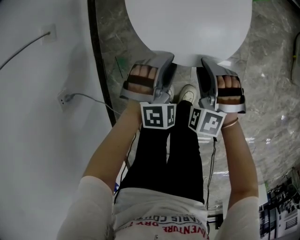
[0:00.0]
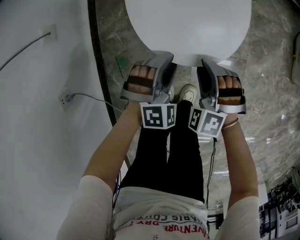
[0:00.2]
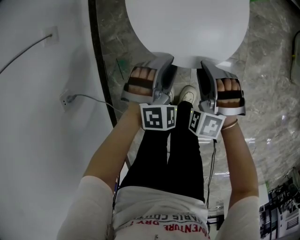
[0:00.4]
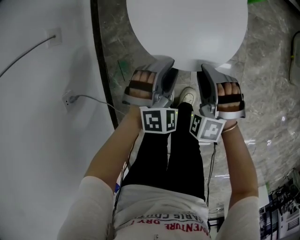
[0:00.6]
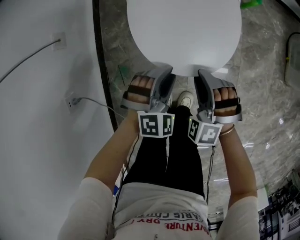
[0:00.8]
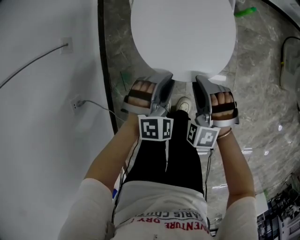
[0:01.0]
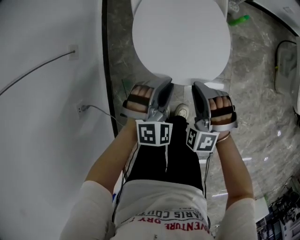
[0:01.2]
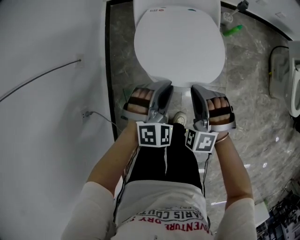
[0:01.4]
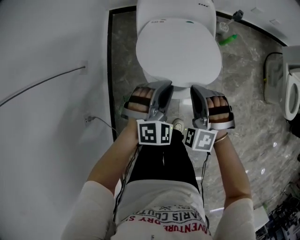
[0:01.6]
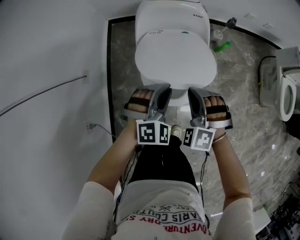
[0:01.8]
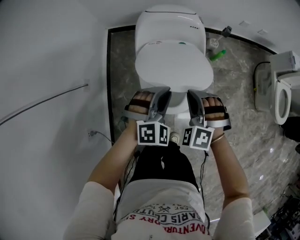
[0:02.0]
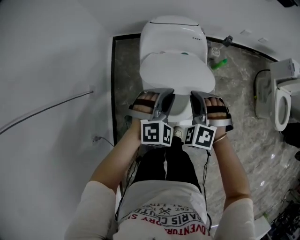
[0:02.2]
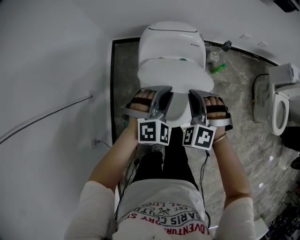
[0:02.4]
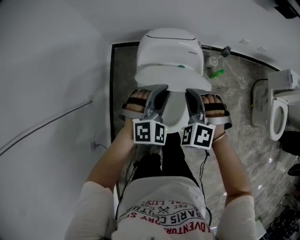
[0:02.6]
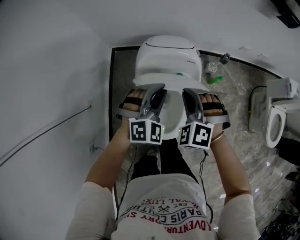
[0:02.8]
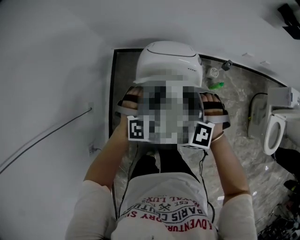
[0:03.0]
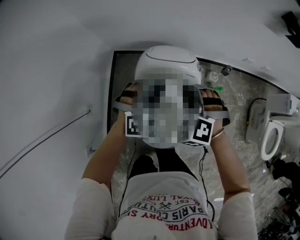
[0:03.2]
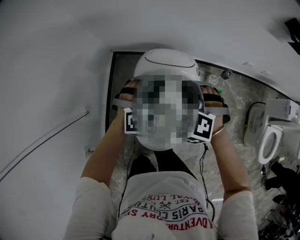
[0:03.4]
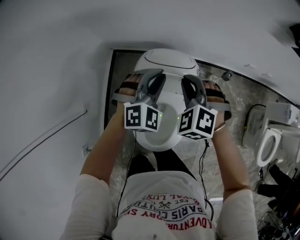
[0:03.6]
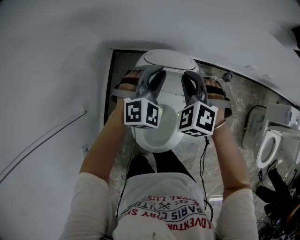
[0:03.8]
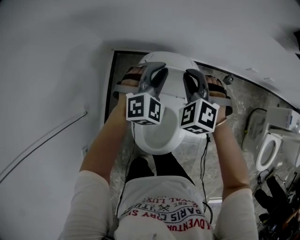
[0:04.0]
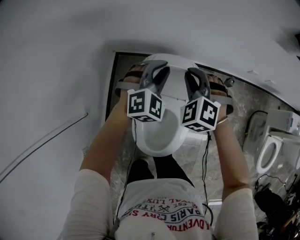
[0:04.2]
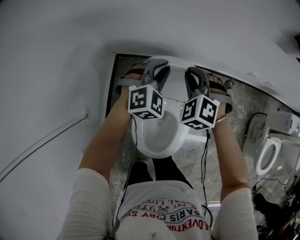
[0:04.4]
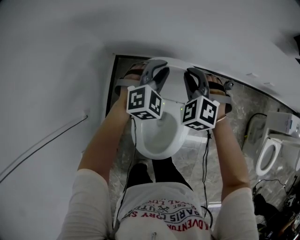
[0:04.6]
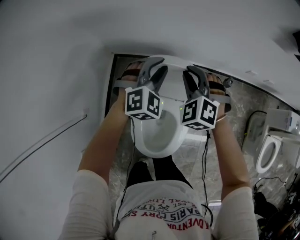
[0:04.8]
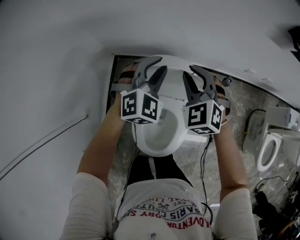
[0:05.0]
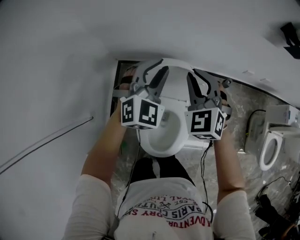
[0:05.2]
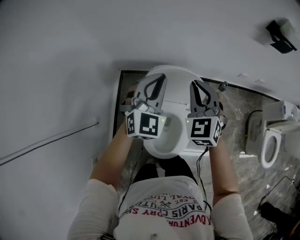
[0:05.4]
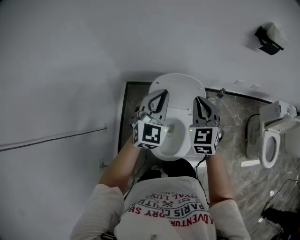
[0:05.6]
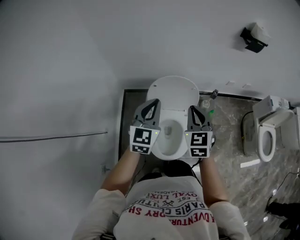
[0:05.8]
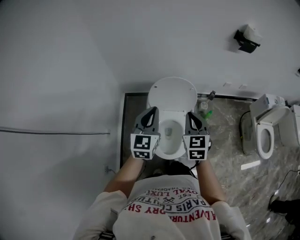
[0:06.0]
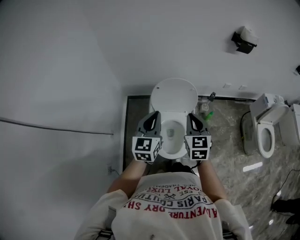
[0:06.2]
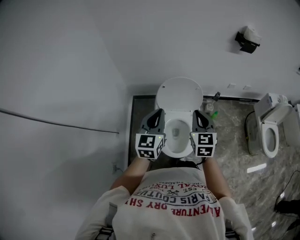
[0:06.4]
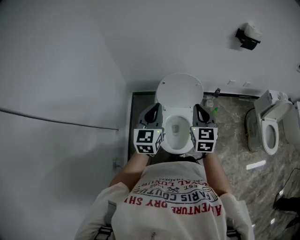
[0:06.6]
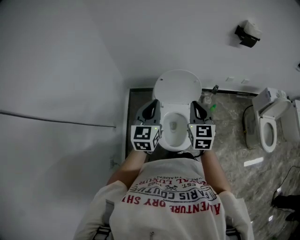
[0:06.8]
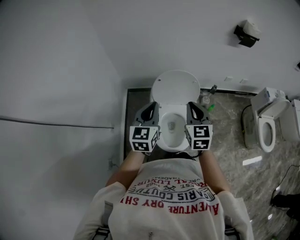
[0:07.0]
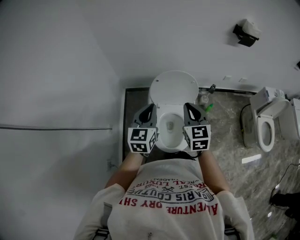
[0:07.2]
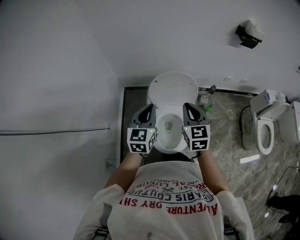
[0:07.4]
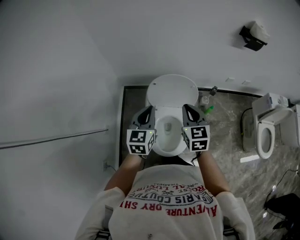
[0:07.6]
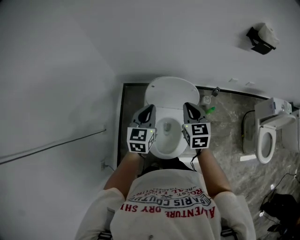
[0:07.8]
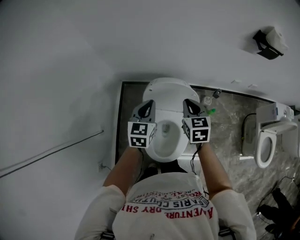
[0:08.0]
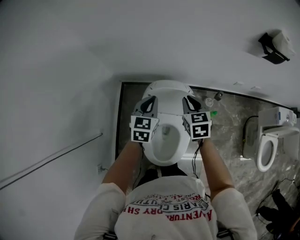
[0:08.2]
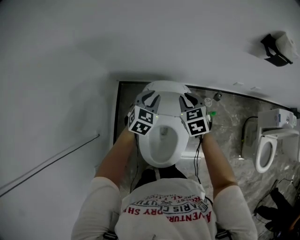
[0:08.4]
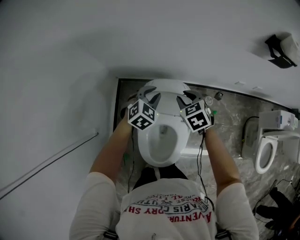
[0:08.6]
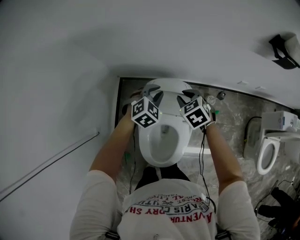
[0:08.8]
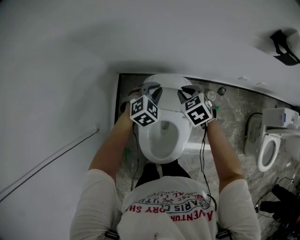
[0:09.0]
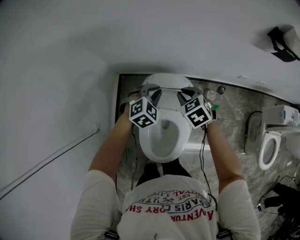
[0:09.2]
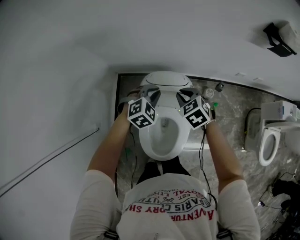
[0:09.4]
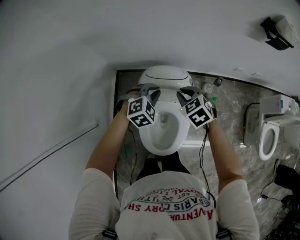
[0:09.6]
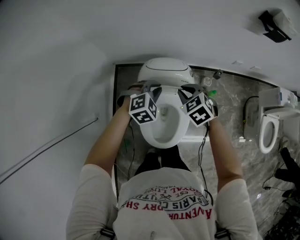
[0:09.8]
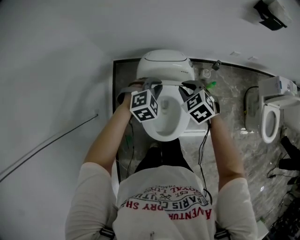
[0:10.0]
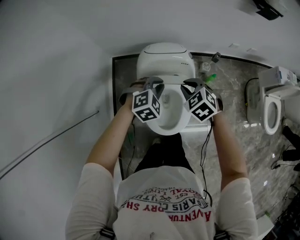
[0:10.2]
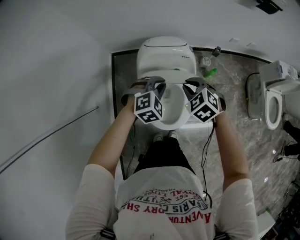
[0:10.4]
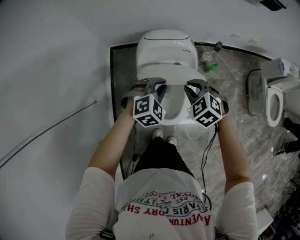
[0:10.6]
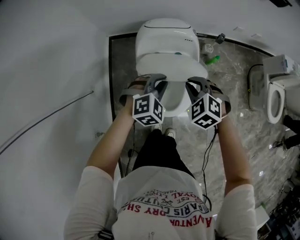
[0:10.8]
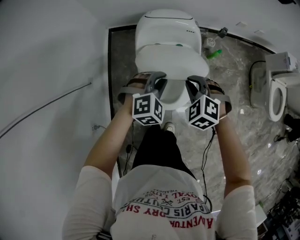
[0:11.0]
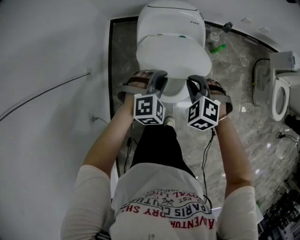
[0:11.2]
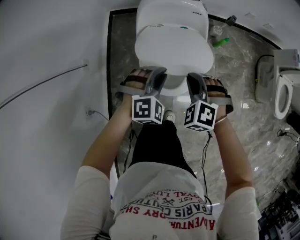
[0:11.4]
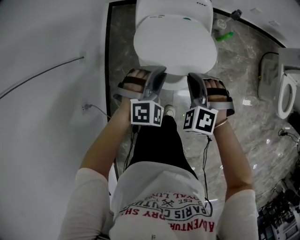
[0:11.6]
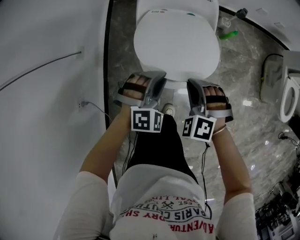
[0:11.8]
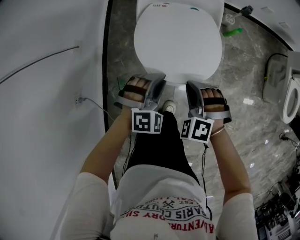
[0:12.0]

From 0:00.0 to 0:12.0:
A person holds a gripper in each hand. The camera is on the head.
From 0:00.0 to 0:01.6: The two grippers go some 25 cm upward. The right gripper closes. The left gripper closes.
From 0:01.6 to 0:03.0: The two grippers go about 30 cm forward and upward.
From 0:03.0 to 0:04.4: Both grippers move forward, approximately 20 cm.
From 0:04.4 to 0:06.0: The grippers both shift backward and upward by about 40 cm. The right gripper twists about 50 degrees clockwise, seen from behind. Meanwhile the left gripper rotates around the line of its fingers by approximately 50 degrees, counterclockwise from behind.
From 0:06.0 to 0:07.6: The left gripper moves about 5 cm. Meanwhile the right gripper heads forward, covering about 5 cm.
From 0:07.6 to 0:09.0: Both grippers move forward and downward, approximately 30 cm. The right gripper rotates some 40 degrees, while the left gripper rotates around the line of its fingers by approximately 40 degrees, clockwise from behind.
From 0:09.0 to 0:10.4: Both grippers travel together backward, approximately 25 cm.
From 0:10.4 to 0:12.0: Both grippers move backward and downward, roughly 30 cm. The right gripper rotates some 30 degrees.

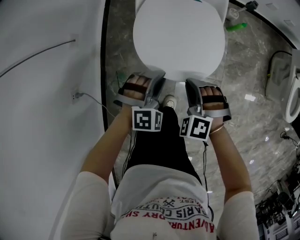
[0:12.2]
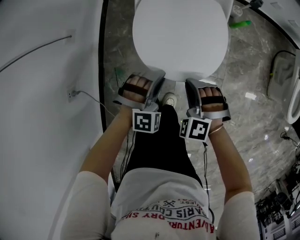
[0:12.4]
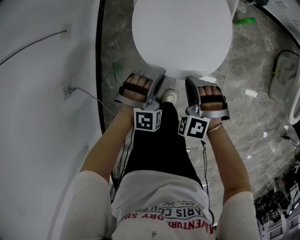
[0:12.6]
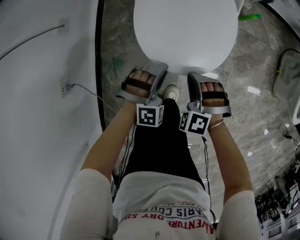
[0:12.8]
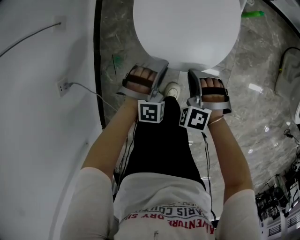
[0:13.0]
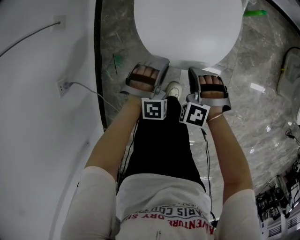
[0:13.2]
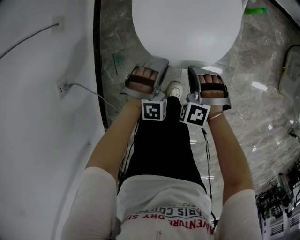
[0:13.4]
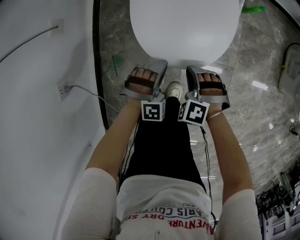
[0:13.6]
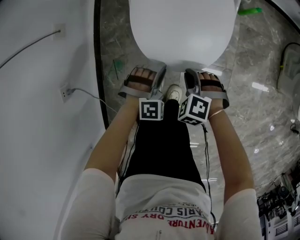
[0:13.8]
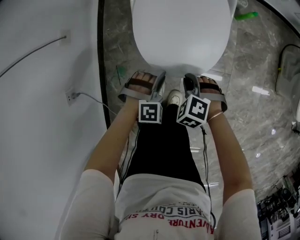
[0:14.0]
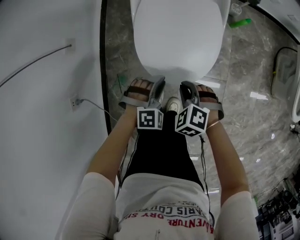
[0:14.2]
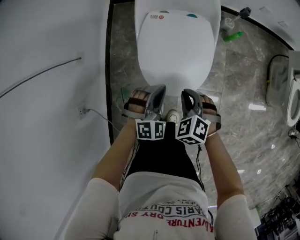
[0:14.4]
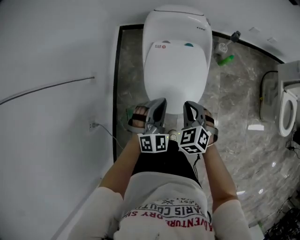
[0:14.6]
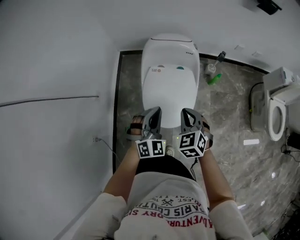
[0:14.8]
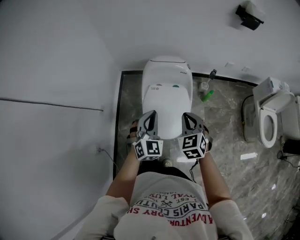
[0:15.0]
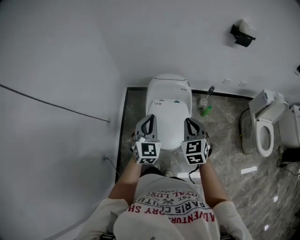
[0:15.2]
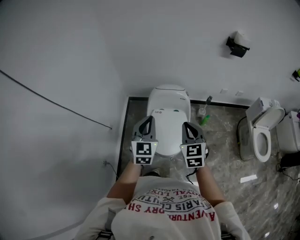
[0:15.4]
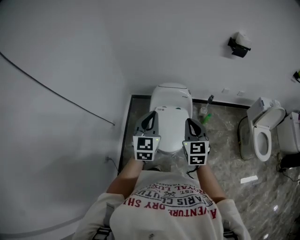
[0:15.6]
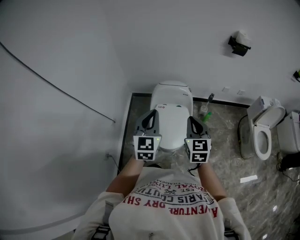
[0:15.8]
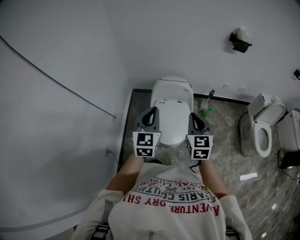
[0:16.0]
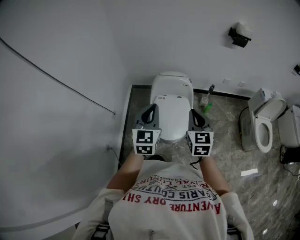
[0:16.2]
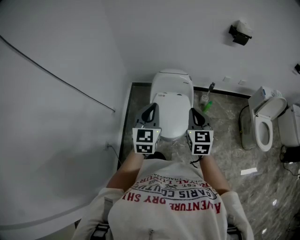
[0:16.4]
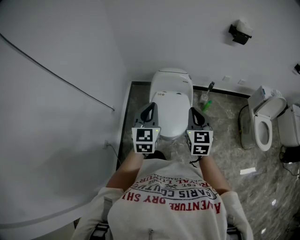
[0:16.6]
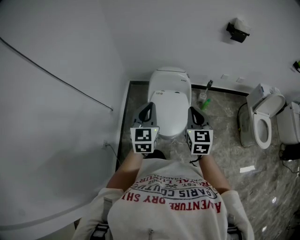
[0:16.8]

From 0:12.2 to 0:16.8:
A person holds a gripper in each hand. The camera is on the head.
From 0:12.2 to 0:13.8: The two grippers go approximately 15 cm downward.
From 0:13.8 to 0:15.2: Both grippers travel together upward, roughly 60 cm. The left gripper tilts its fingers about 40 degrees upward. The right gripper tips its fingers upward by some 40 degrees.
From 0:15.2 to 0:16.8: Both grippers move backward and upward, roughly 10 cm.

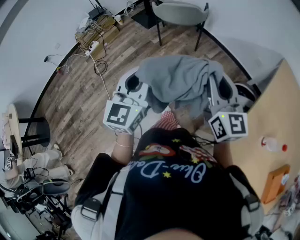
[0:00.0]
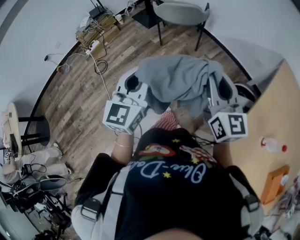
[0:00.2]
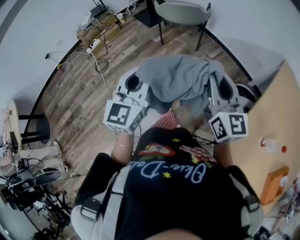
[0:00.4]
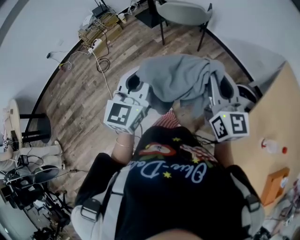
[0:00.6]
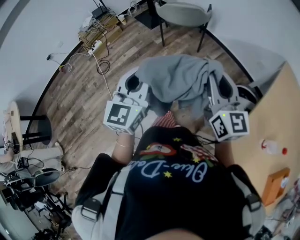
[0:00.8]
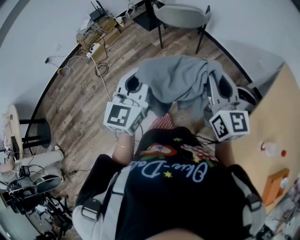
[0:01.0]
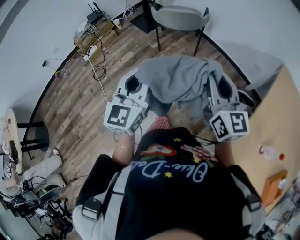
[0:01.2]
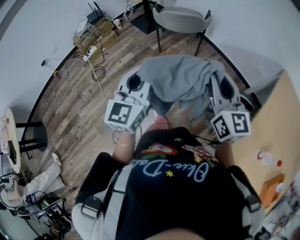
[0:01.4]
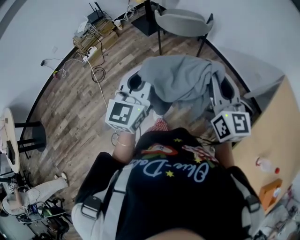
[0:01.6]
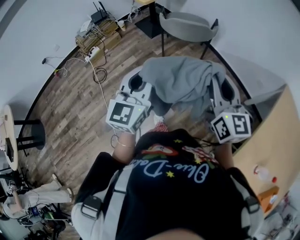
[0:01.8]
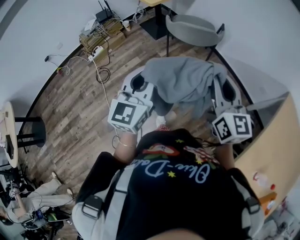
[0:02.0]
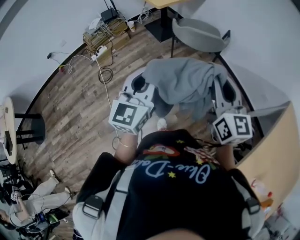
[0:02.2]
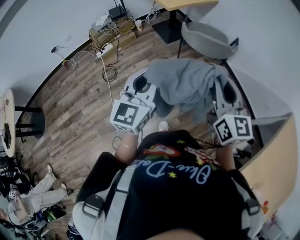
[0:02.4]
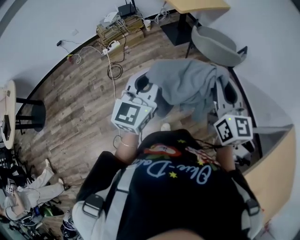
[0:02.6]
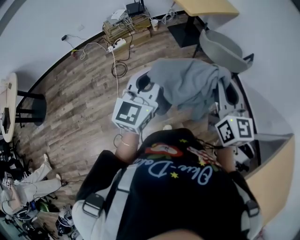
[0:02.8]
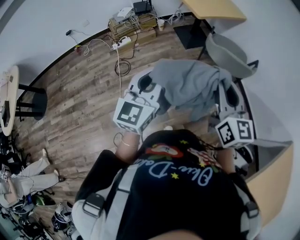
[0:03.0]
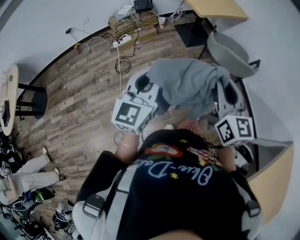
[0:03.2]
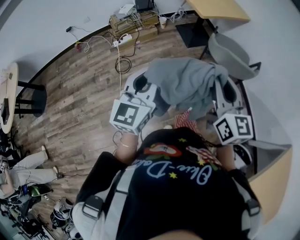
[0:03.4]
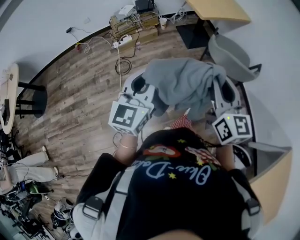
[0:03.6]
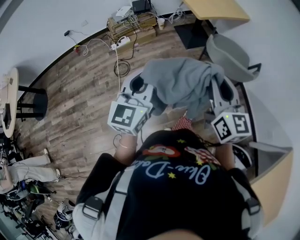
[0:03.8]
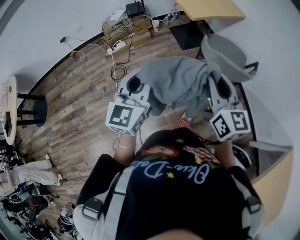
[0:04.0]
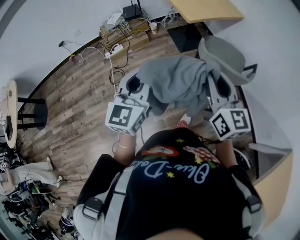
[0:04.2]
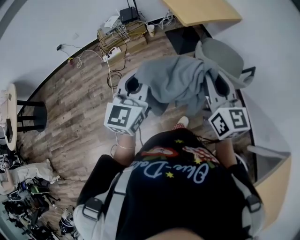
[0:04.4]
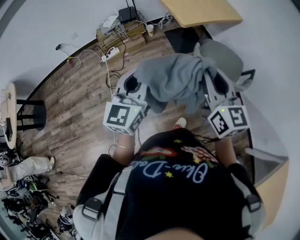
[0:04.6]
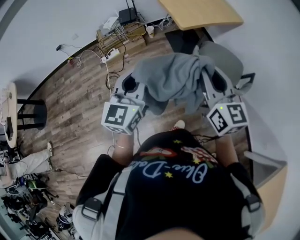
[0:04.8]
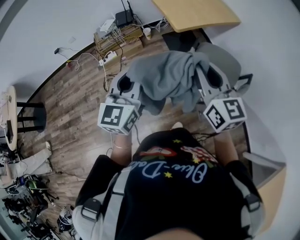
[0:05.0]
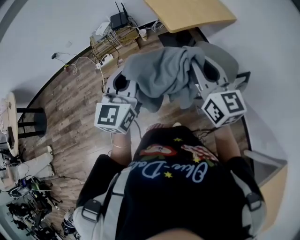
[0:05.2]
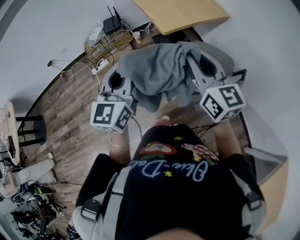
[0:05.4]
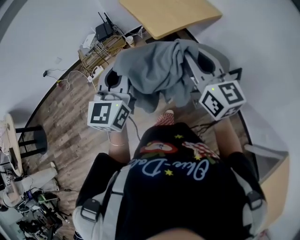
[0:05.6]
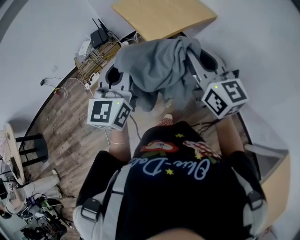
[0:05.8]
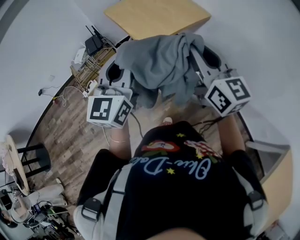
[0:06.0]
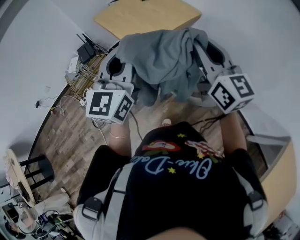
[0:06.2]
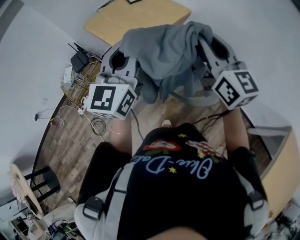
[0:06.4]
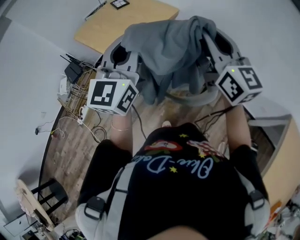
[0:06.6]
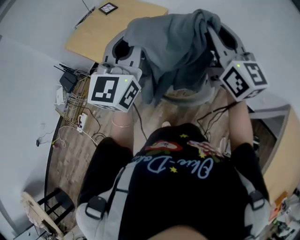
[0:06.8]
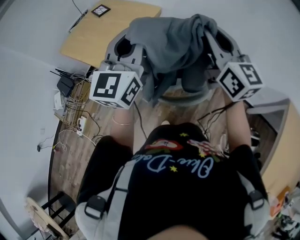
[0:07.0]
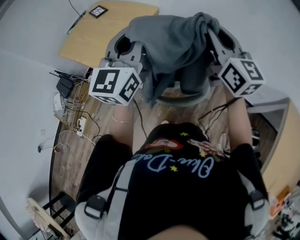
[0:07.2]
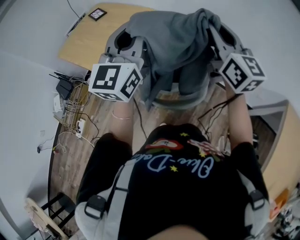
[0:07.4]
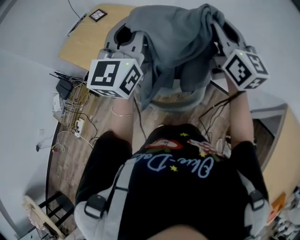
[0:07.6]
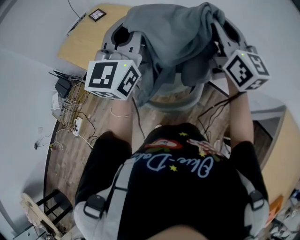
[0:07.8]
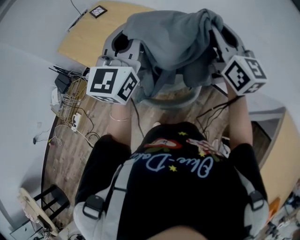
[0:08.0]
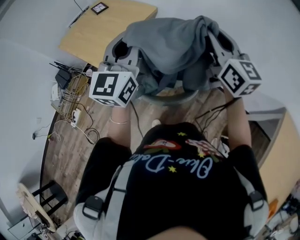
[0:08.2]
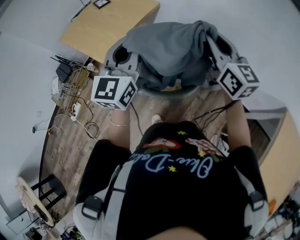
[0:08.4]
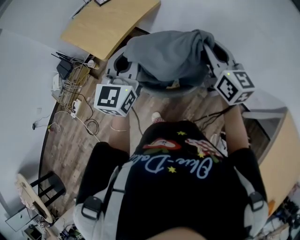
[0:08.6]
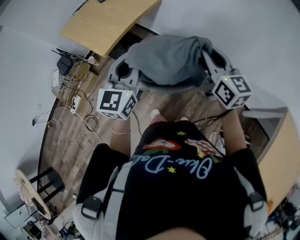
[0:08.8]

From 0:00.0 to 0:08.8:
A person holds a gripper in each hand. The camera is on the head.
From 0:00.0 to 0:01.4: Both grippers move forward, roughly 10 cm.
From 0:01.4 to 0:03.0: The grippers both shift to the left and forward by about 30 cm.
From 0:03.0 to 0:04.4: The left gripper shifts roughly 20 cm forward and to the right. Meanwhile the right gripper travels forward by roughly 20 cm.
From 0:04.4 to 0:05.8: The grippers both shift forward and to the right by some 25 cm.
From 0:05.8 to 0:07.4: The right gripper ends up some 30 cm from where it was, and rotates roughly 40 degrees, while the left gripper shifts by about 30 cm, and turns by approximately 40 degrees.
From 0:07.4 to 0:08.8: The left gripper is displaced downward and backward by some 15 cm, while the right gripper heads downward, covering about 15 cm.
